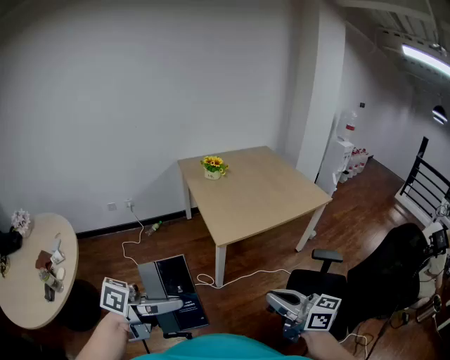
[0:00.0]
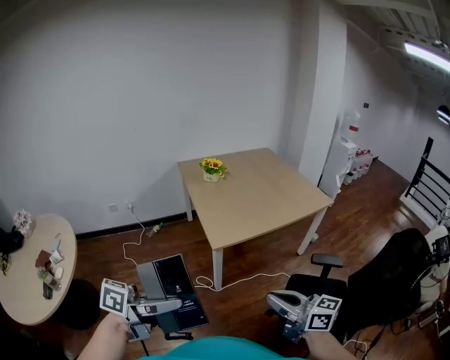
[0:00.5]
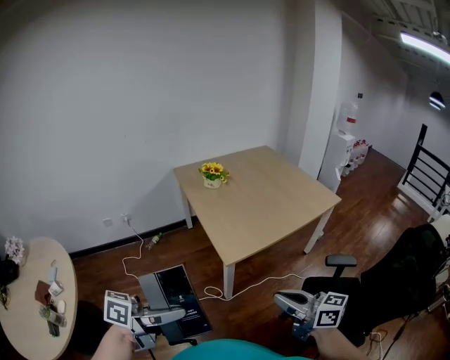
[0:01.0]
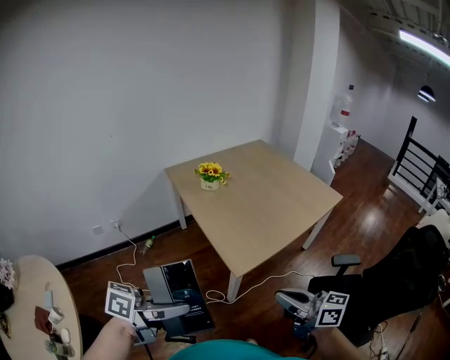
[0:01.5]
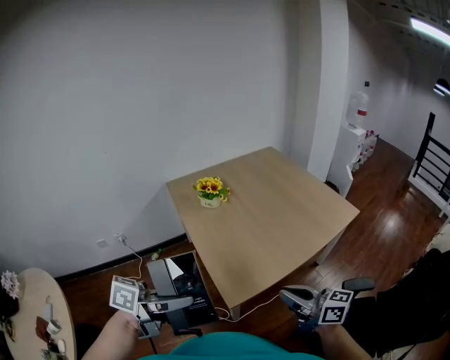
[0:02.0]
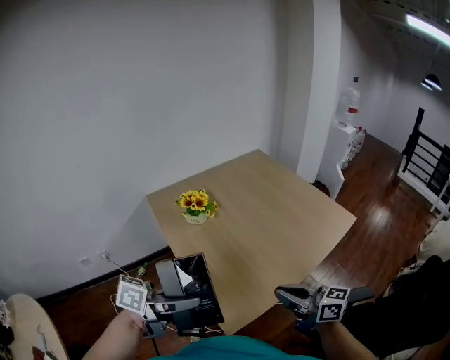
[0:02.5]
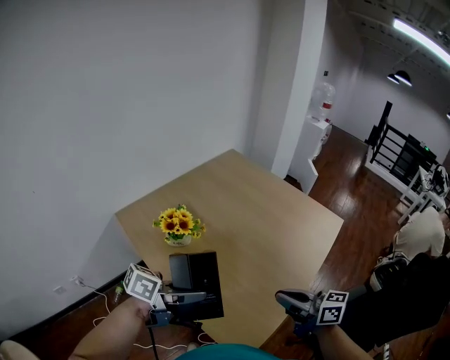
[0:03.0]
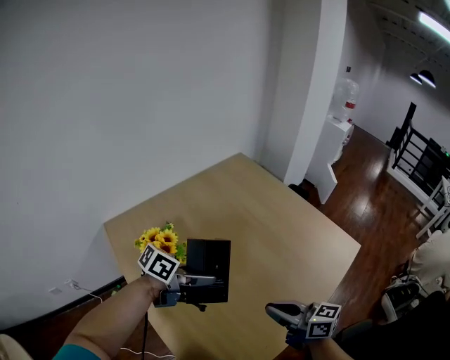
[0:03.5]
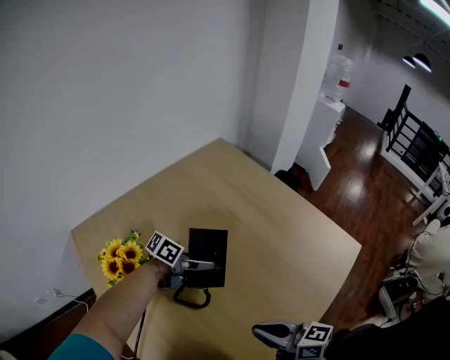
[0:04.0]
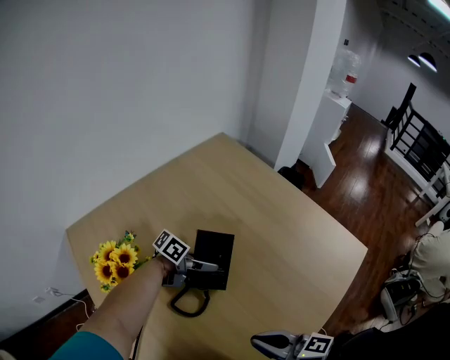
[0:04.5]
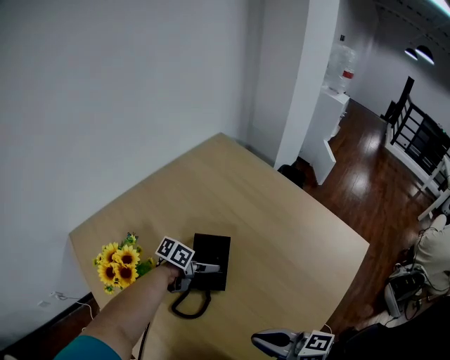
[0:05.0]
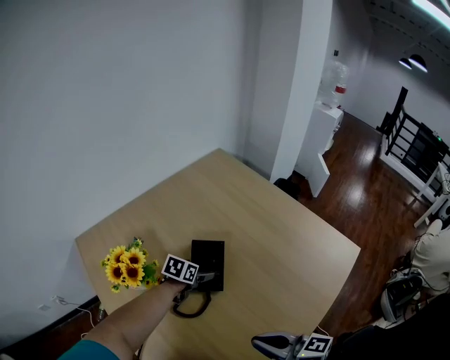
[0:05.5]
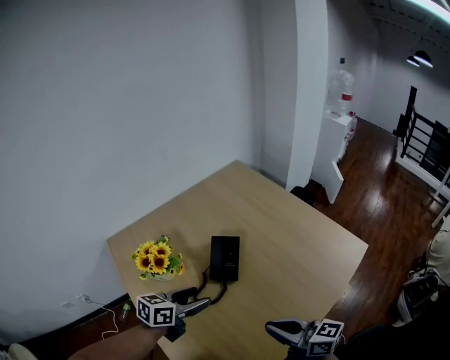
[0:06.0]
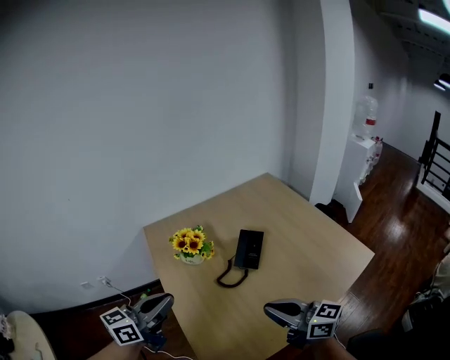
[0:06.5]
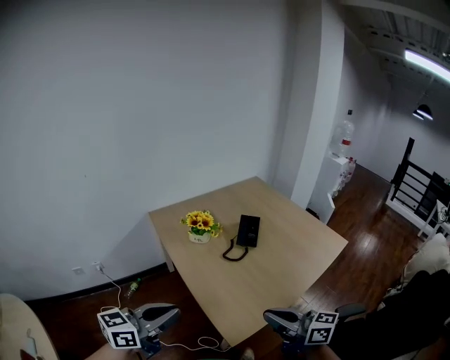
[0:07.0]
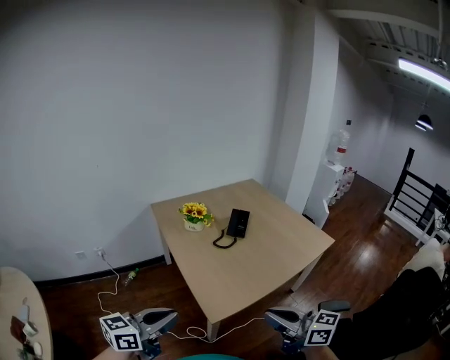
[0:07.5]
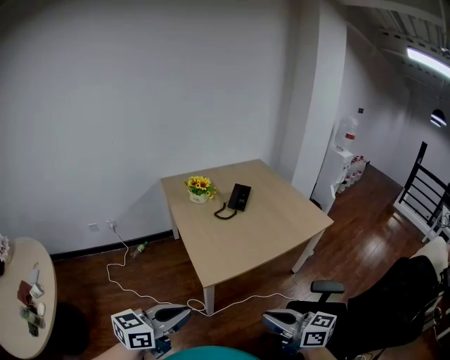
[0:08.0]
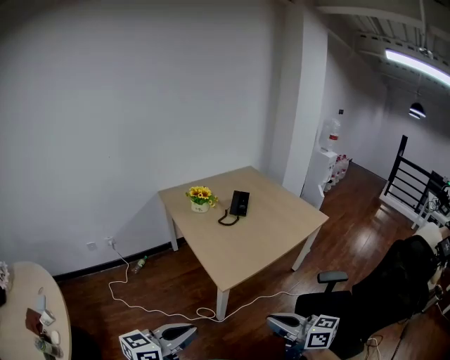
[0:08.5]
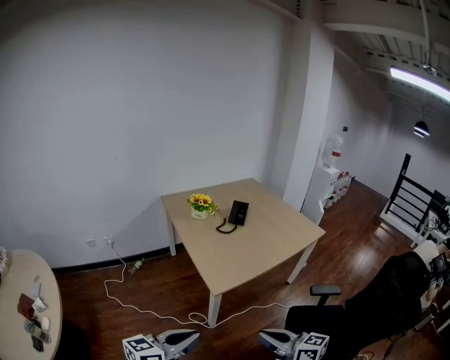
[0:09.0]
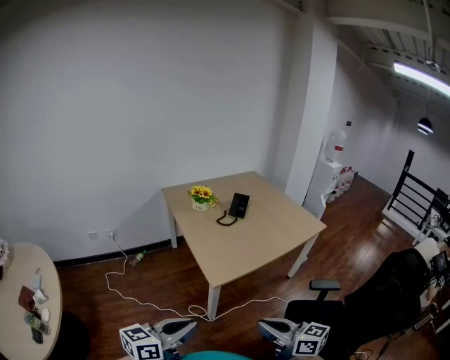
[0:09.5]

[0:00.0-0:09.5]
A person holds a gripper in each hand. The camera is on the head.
0:00.0 to 0:02.0: Both grippers travel together forward, about 35 cm.
0:02.0 to 0:04.0: The right gripper moves some 40 cm. The left gripper changes place by approximately 70 cm, and rotates approximately 30 degrees.
0:04.0 to 0:05.5: The left gripper is displaced downward by about 10 cm, turns by about 40 degrees, and opens up.
0:05.5 to 0:07.5: The left gripper shifts some 80 cm backward and upward, angles its fingers upward, by approximately 50 degrees, and closes up. The right gripper shifts approximately 40 cm backward and upward.
0:07.5 to 0:09.5: Both grippers travel together backward, approximately 20 cm.

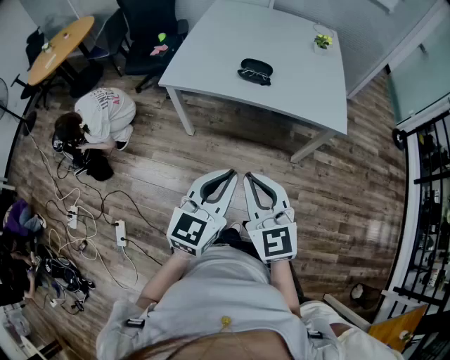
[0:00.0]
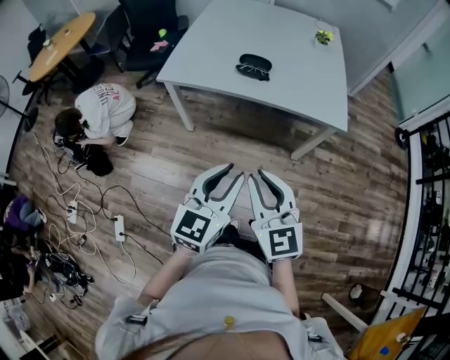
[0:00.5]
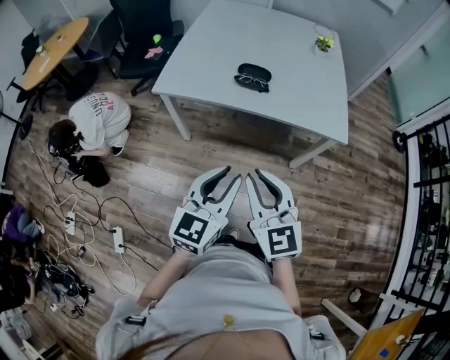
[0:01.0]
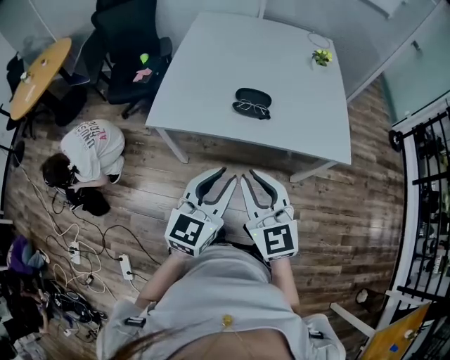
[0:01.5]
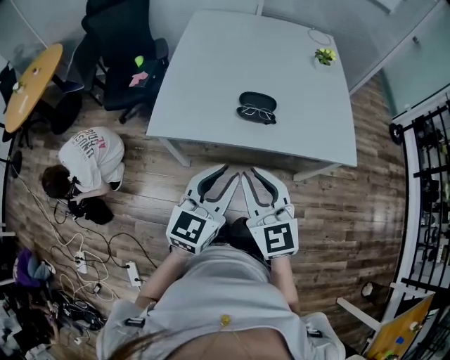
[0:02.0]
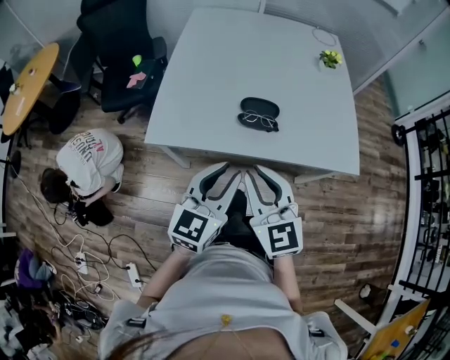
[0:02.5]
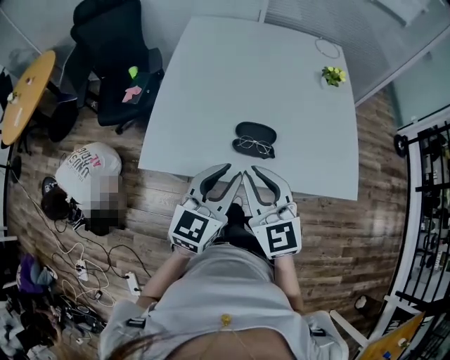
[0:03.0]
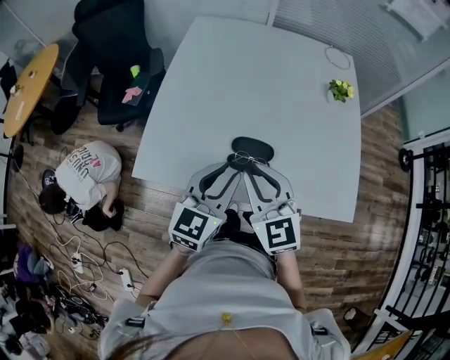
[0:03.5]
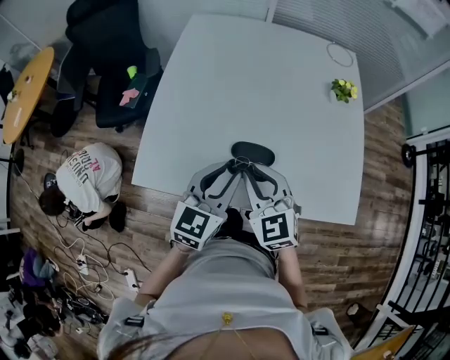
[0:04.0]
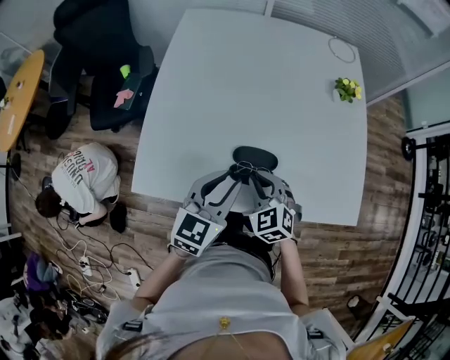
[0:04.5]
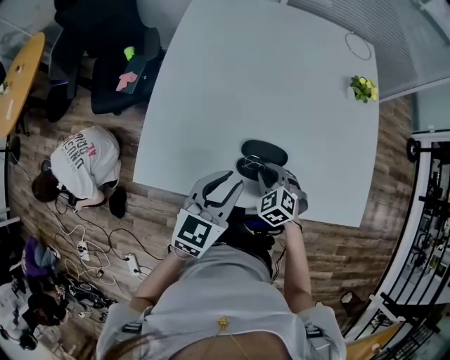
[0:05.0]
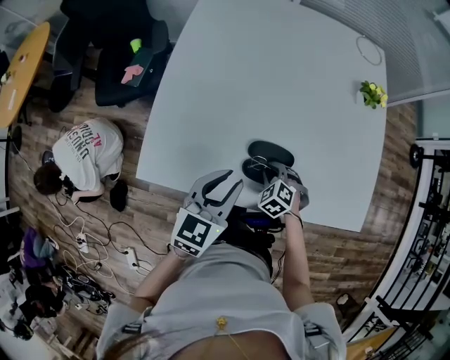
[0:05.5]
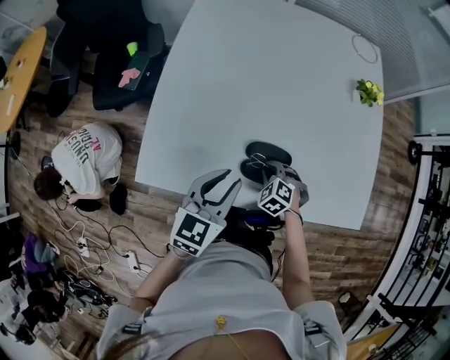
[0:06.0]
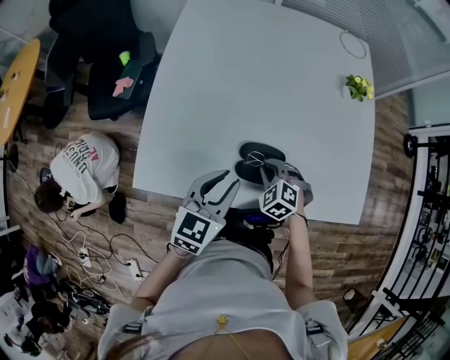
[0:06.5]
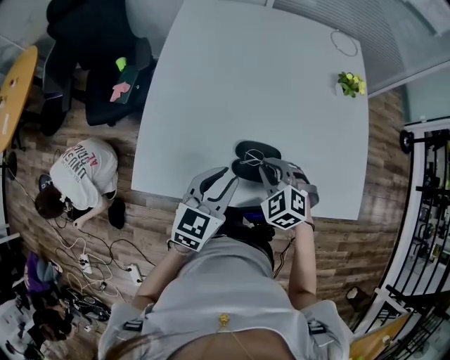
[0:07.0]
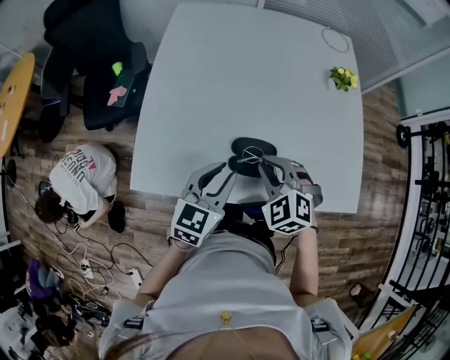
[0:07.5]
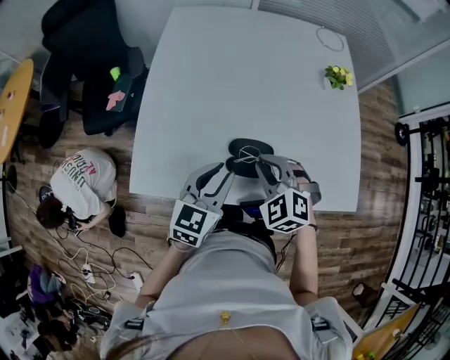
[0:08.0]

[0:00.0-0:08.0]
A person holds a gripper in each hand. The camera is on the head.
0:00.0 to 0:02.0: The two grippers go about 25 cm forward.
0:02.0 to 0:04.0: Both grippers move forward, some 25 cm.
0:04.0 to 0:06.0: The right gripper shifts roughly 25 cm downward, and tilts its fingers some 40 degrees downward. Meanwhile the left gripper is displaced downward by some 5 cm.
0:06.0 to 0:08.0: The right gripper is displaced upward by about 20 cm, and rotates some 20 degrees.

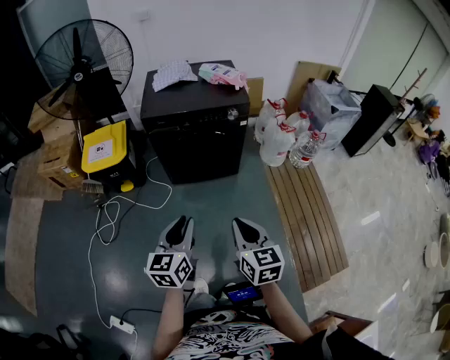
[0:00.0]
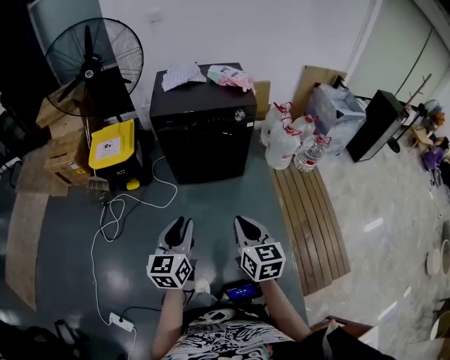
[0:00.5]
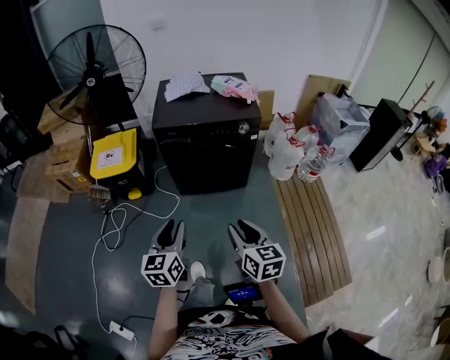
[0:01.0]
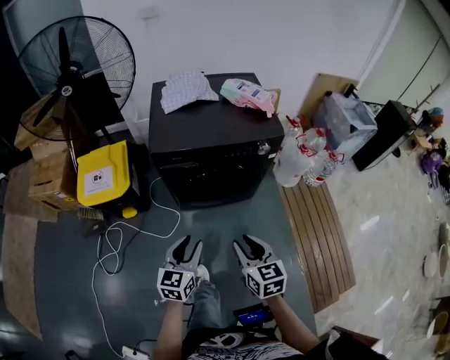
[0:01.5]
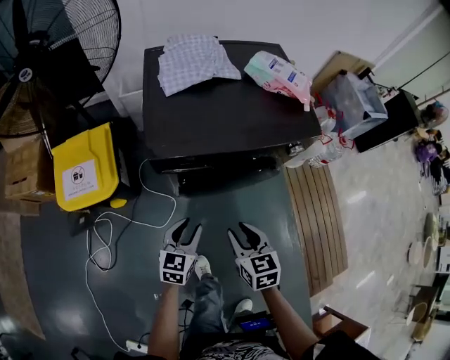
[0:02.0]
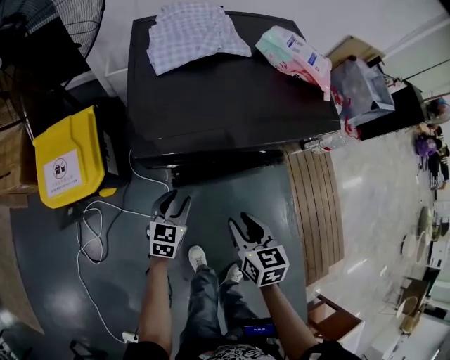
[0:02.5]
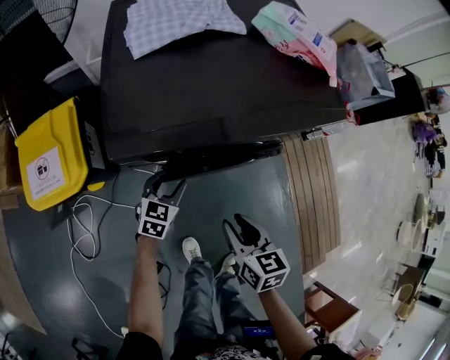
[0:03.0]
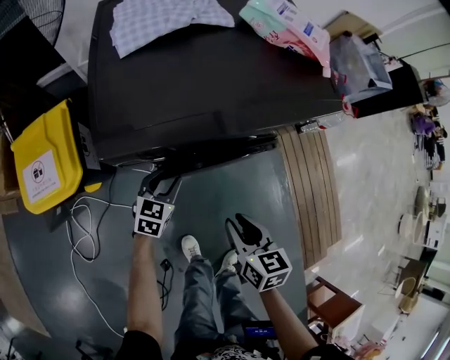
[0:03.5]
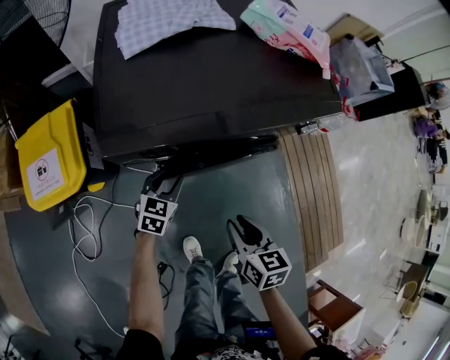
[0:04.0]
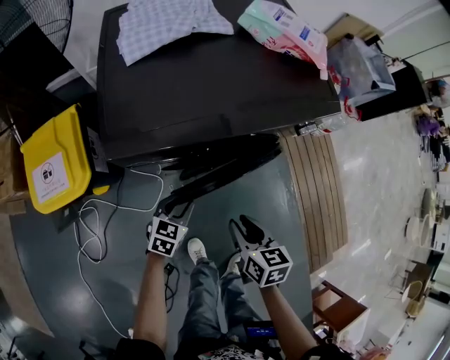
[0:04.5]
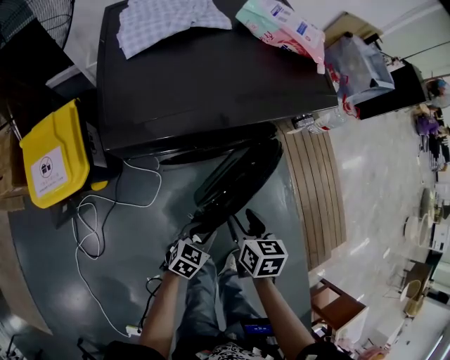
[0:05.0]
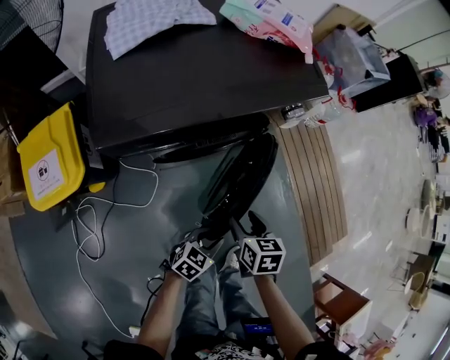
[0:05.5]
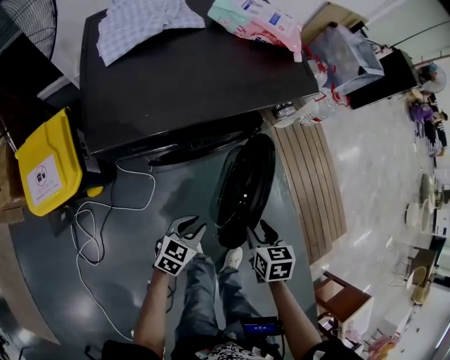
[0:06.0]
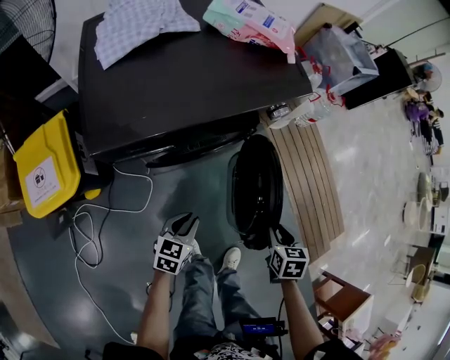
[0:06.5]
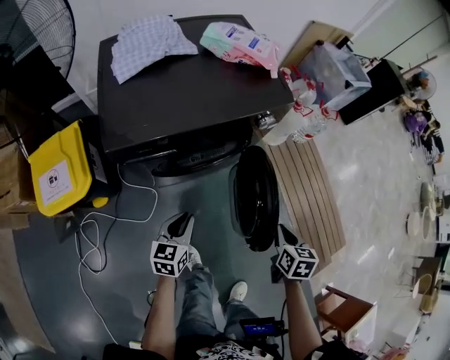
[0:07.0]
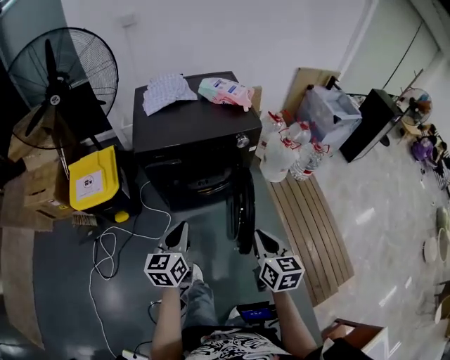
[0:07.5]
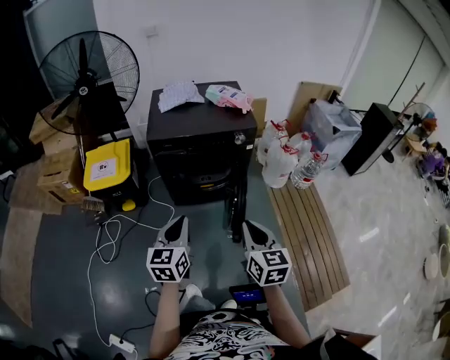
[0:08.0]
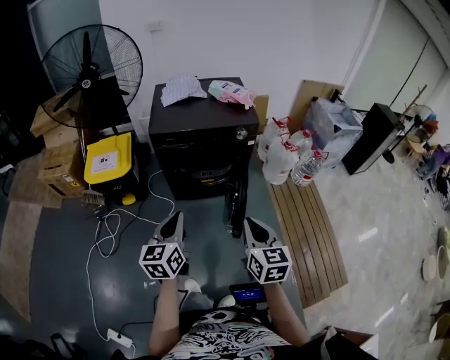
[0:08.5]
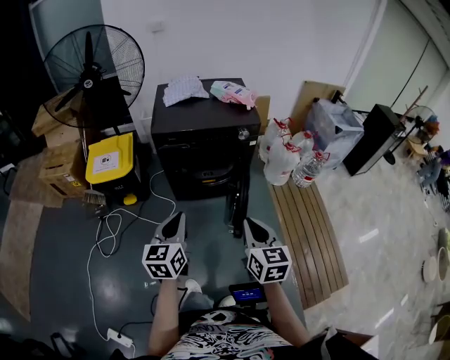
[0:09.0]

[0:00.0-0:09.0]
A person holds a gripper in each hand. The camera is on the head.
0:00.0 to 0:02.0: The two grippers travel together, forward and to the left, about 40 cm. Both grippers travel together downward, roughly 20 cm. The left gripper turns by about 20 degrees. Meanwhile the right gripper opens.
0:02.0 to 0:04.5: The left gripper shifts some 15 cm downward and forward; the right gripper shifts approximately 10 cm downward, and turns by roughly 20 degrees.
0:04.5 to 0:07.0: The right gripper shifts about 20 cm to the right, turns by about 20 degrees, and closes, while the left gripper travels upward, to the right and backward by some 15 cm.
0:07.0 to 0:09.0: Both grippers travel together upward, some 25 cm. The left gripper turns by roughly 30 degrees; the right gripper tips its fingers upward by approximately 30 degrees.
